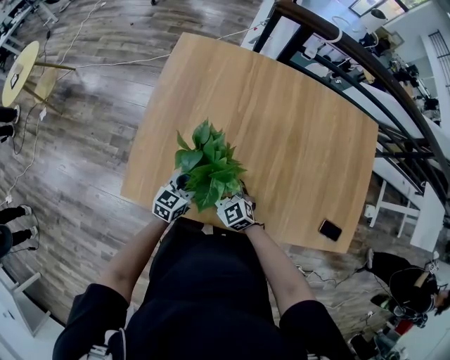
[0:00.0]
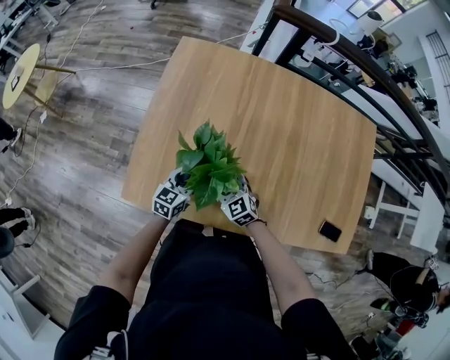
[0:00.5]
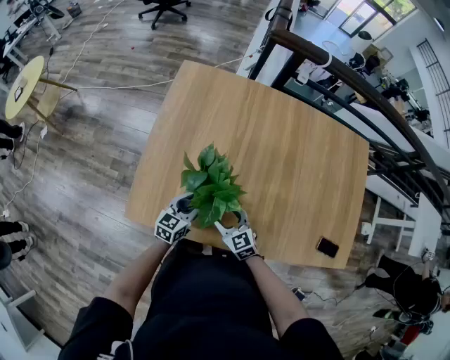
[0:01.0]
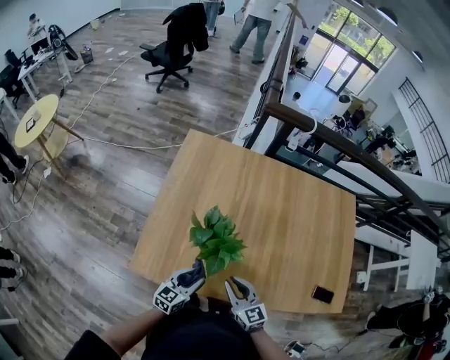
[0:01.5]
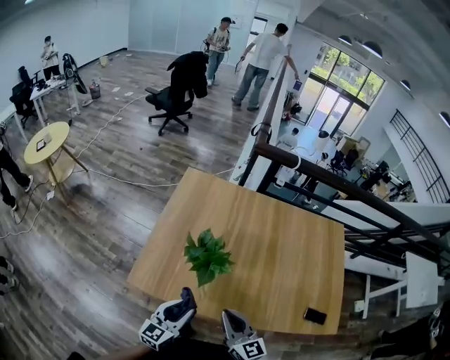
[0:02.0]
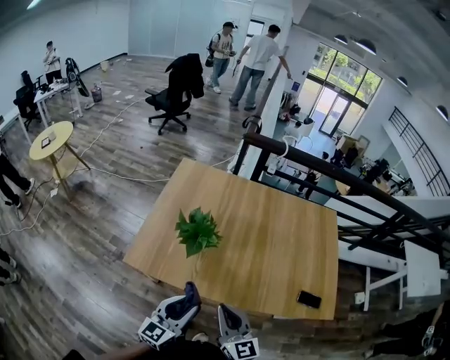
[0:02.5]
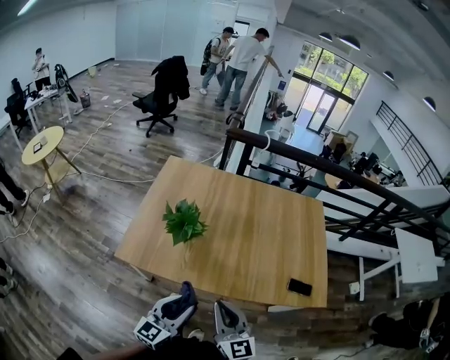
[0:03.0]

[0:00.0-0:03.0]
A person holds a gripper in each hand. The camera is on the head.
0:00.0 to 0:01.5: The right gripper is displaced upward and backward by some 10 cm, changes its angle by roughly 30 degrees, and closes up. Meanwhile the left gripper is displaced backward by about 10 cm.
0:01.5 to 0:03.0: The two grippers go about 25 cm backward, upward and to the right. The right gripper swivels about 20 degrees, and closes.

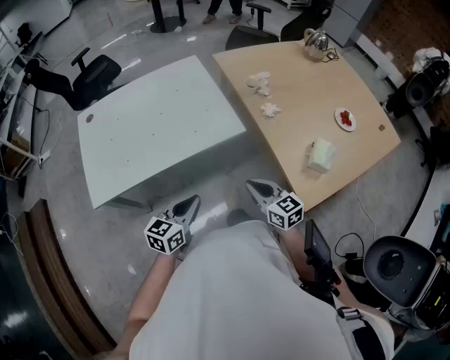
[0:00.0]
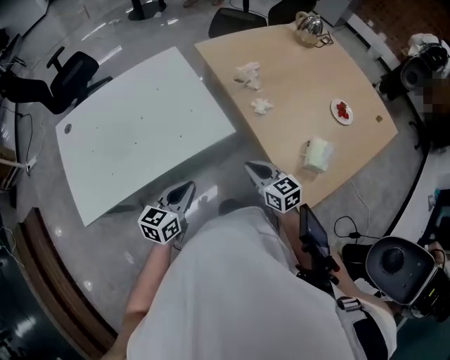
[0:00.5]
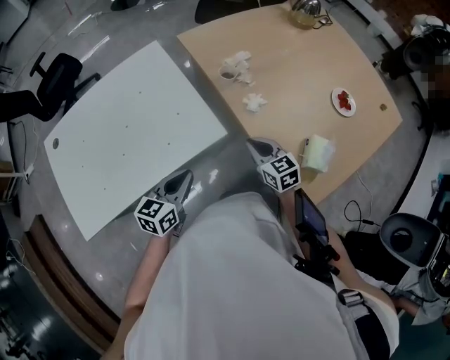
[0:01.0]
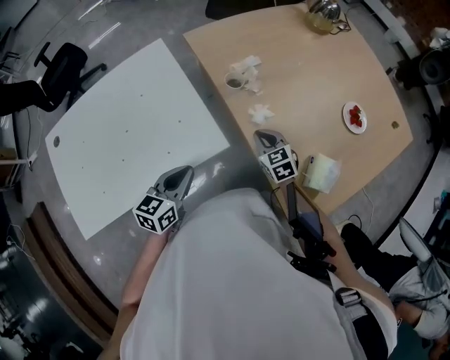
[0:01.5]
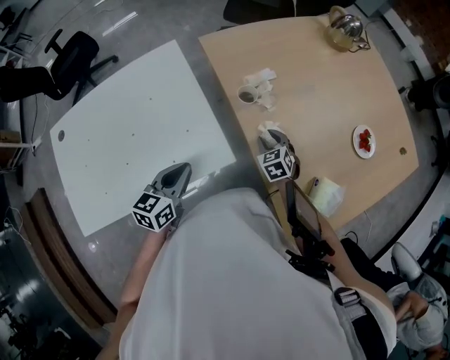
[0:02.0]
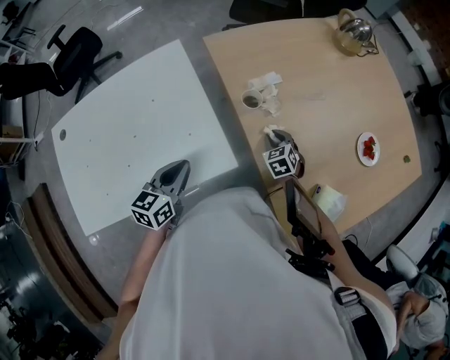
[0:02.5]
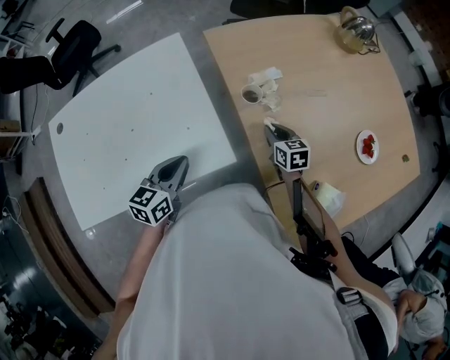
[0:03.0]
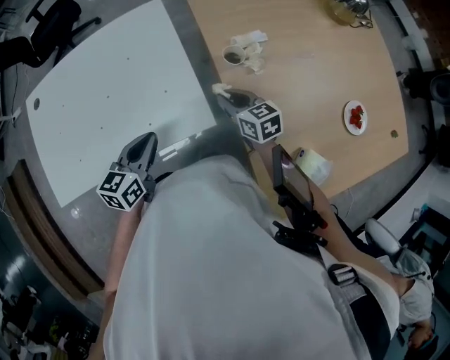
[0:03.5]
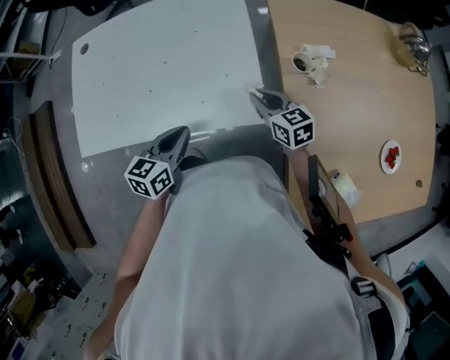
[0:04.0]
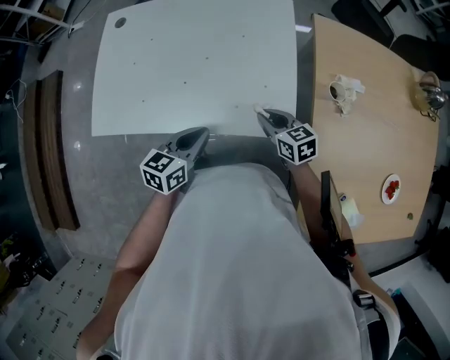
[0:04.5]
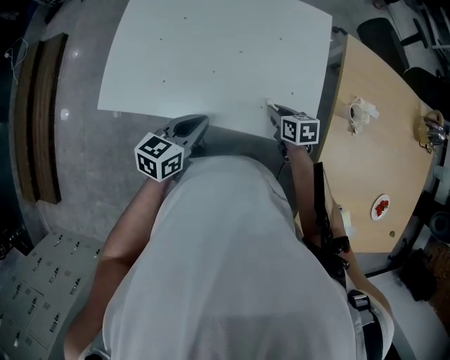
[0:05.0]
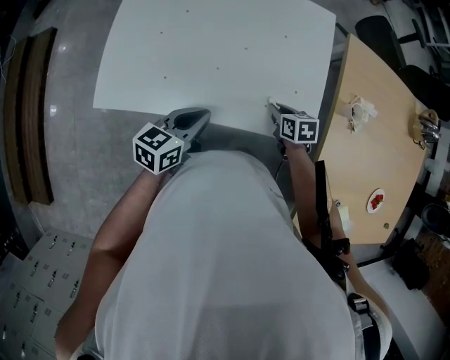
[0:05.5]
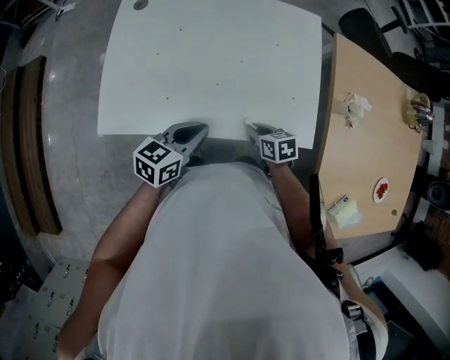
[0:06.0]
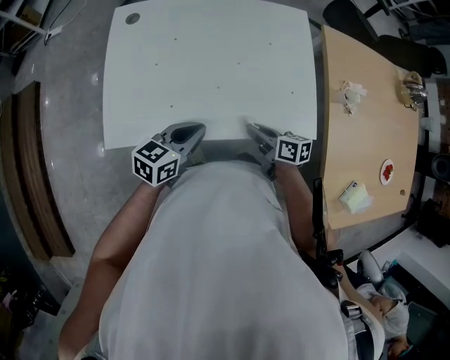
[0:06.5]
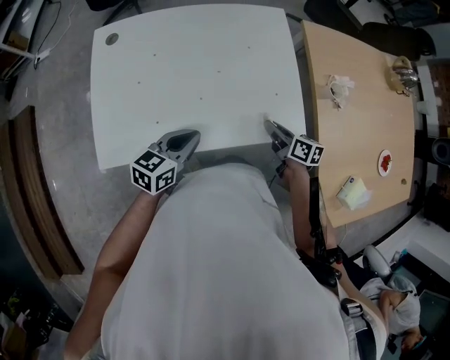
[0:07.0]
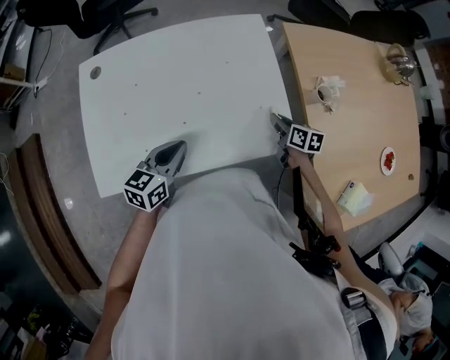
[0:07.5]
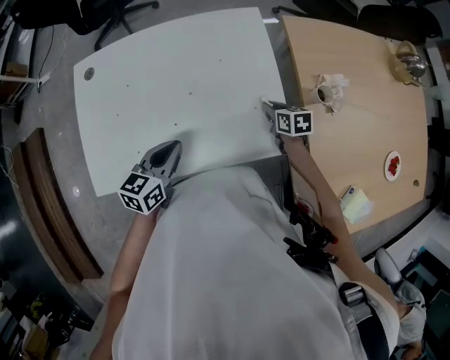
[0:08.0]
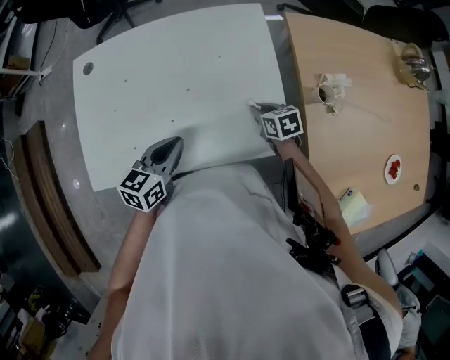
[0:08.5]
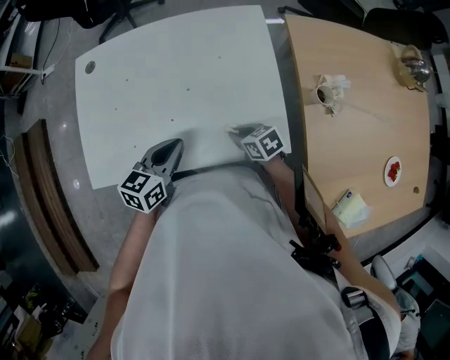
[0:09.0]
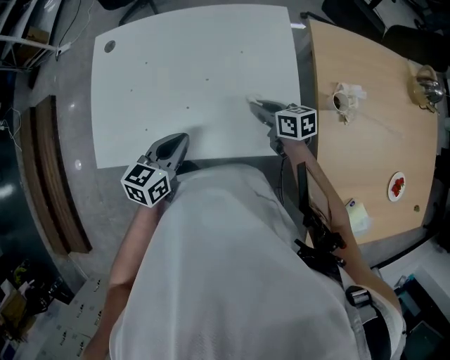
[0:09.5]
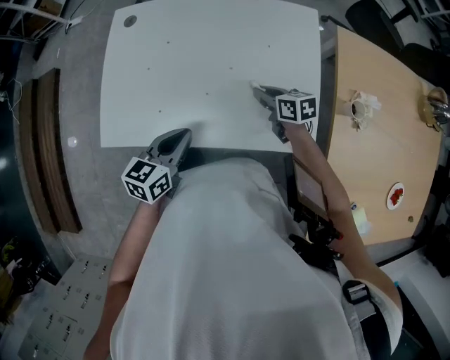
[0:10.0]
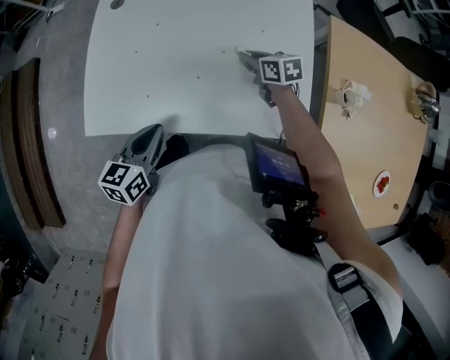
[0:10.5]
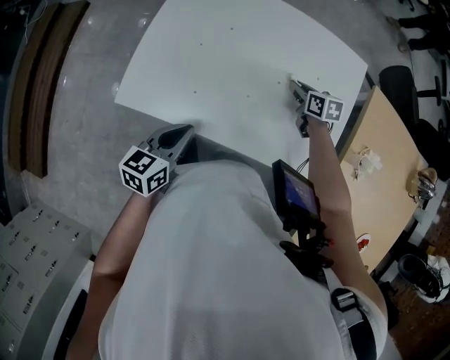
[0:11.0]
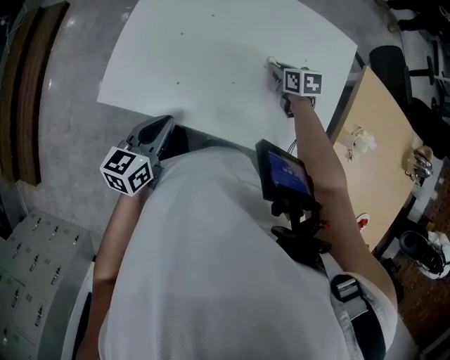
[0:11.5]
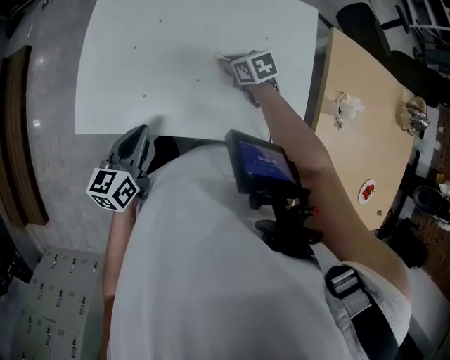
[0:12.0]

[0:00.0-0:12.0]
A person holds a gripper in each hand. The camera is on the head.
0:00.0 to 0:02.0: The grippers both shift forward by approximately 30 cm. The right gripper rotates roughly 40 degrees, and opens up.
0:02.0 to 0:04.0: The right gripper ends up roughly 20 cm from where it was, and changes its angle by approximately 40 degrees. The left gripper changes place by about 10 cm.
0:04.0 to 0:06.0: The right gripper heads to the left and downward, covering roughly 25 cm, and swivels some 30 degrees. Meanwhile the left gripper shifts about 15 cm to the left.
0:06.0 to 0:08.0: The right gripper heads to the right and forward, covering roughly 25 cm. The left gripper goes some 10 cm forward.
0:08.0 to 0:10.0: The left gripper goes about 5 cm to the left. The right gripper moves to the left, about 15 cm, and rotates some 20 degrees.
0:10.0 to 0:12.0: The left gripper heads to the left, covering approximately 10 cm, while the right gripper heads to the left and forward, covering about 10 cm, and swivels about 20 degrees.

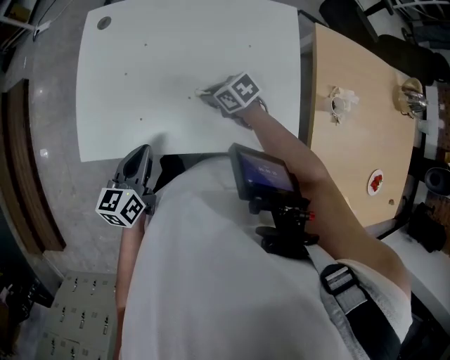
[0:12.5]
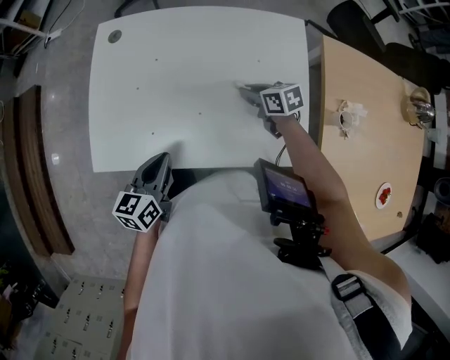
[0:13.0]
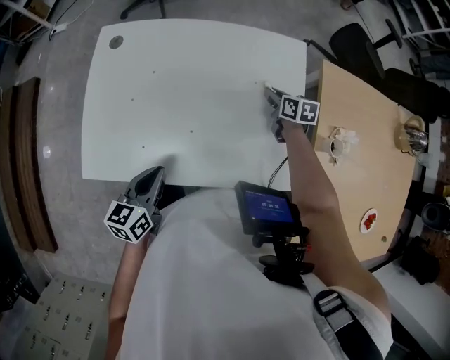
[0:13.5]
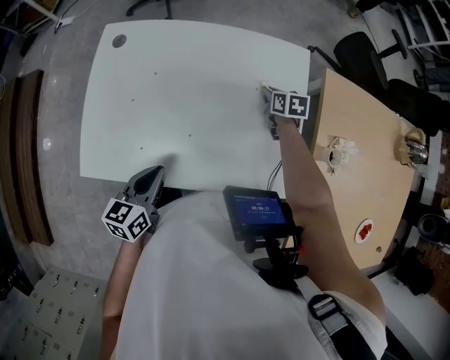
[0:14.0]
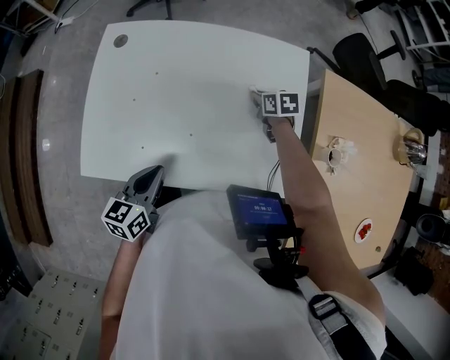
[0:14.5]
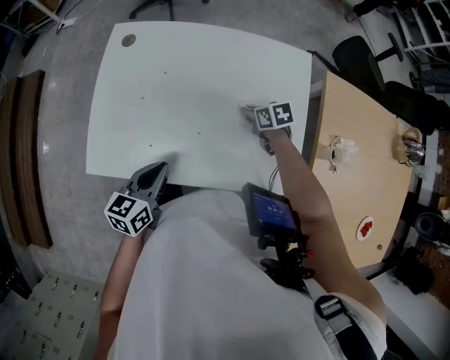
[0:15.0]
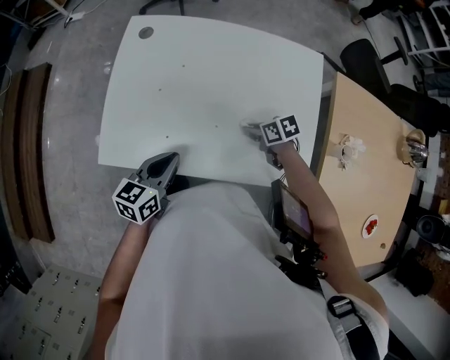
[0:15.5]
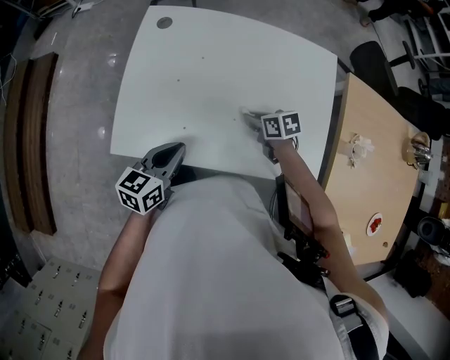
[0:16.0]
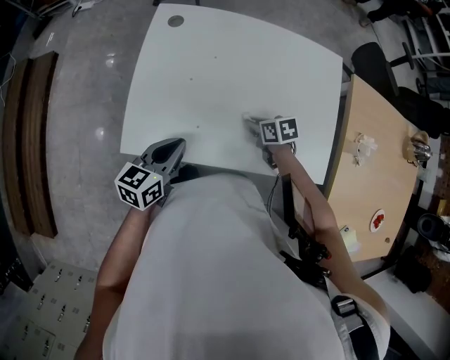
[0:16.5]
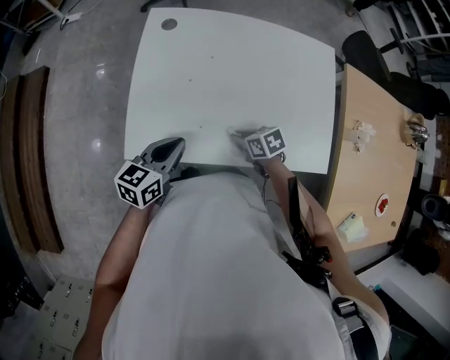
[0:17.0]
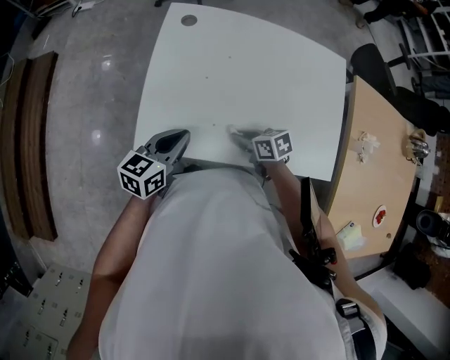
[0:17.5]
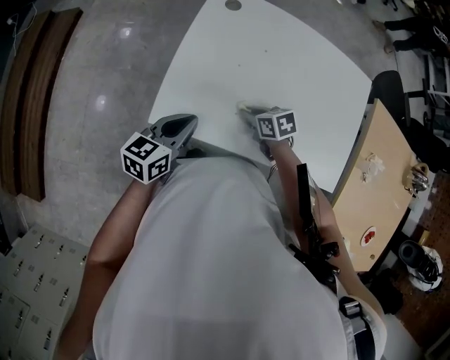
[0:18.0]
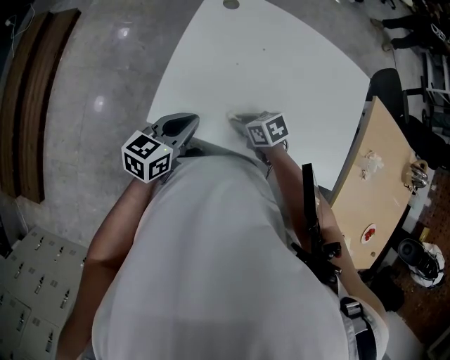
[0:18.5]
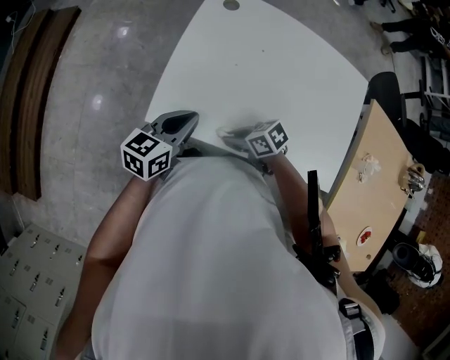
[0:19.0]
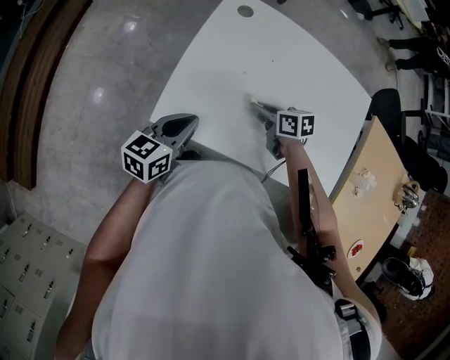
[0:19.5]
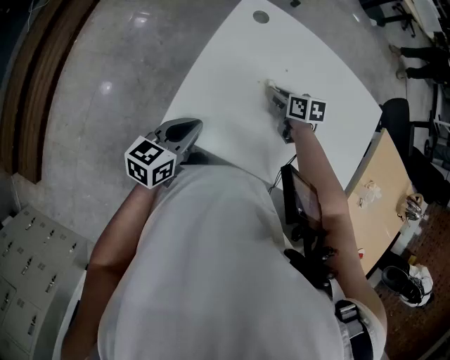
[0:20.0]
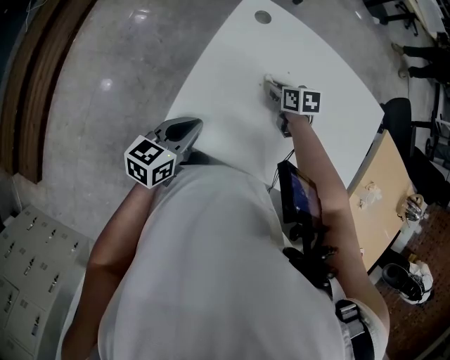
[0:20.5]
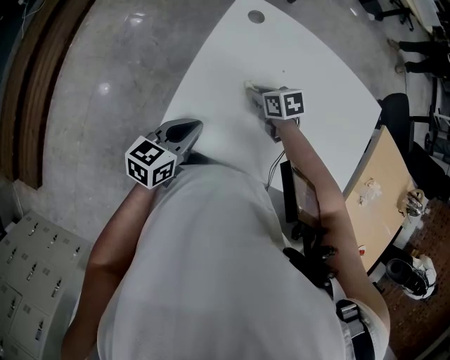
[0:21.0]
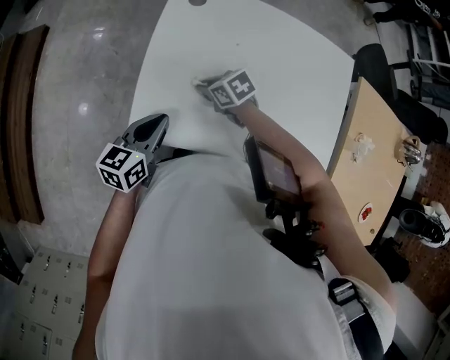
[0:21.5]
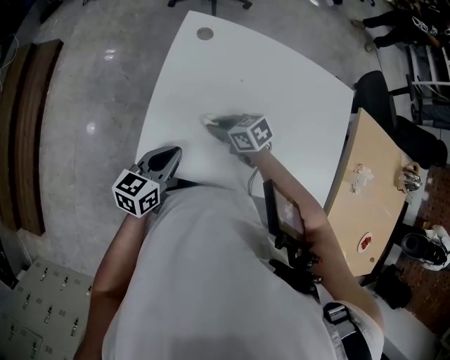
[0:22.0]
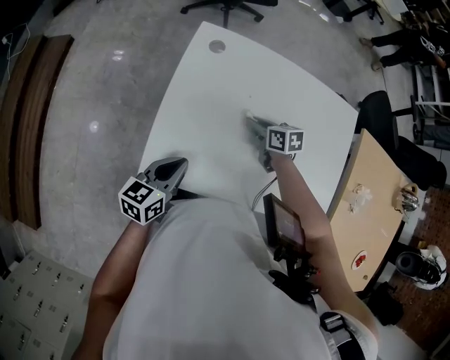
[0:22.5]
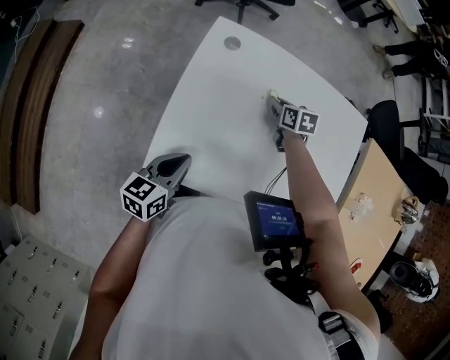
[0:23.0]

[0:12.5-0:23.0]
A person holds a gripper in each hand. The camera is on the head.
0:12.5 to 0:14.5: The right gripper ends up approximately 20 cm from where it was, and swivels some 30 degrees; the left gripper shifts by approximately 5 cm.
0:14.5 to 0:16.5: The left gripper heads to the left, covering some 10 cm, while the right gripper travels to the left and backward by approximately 25 cm.
0:16.5 to 0:19.0: The right gripper ends up about 20 cm from where it was, and changes its angle by some 30 degrees; the left gripper ends up approximately 5 cm from where it was.
0:19.0 to 0:21.0: The right gripper shifts by approximately 20 cm, and turns by approximately 20 degrees.
0:21.0 to 0:23.0: The right gripper moves to the right and forward, some 15 cm, and turns by about 20 degrees.

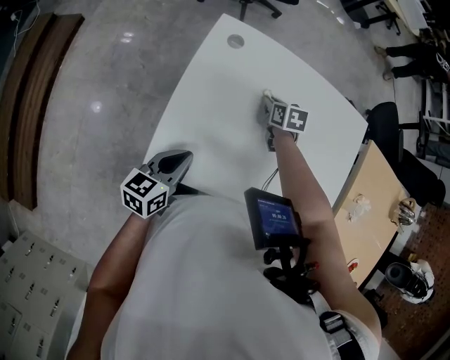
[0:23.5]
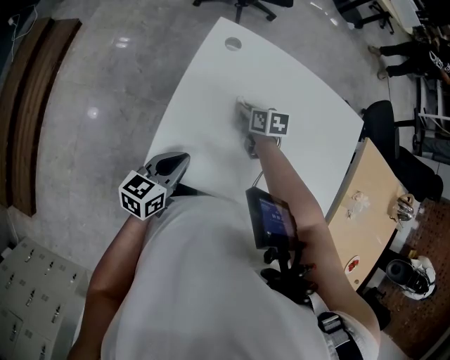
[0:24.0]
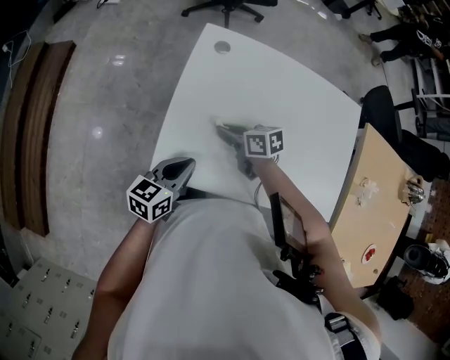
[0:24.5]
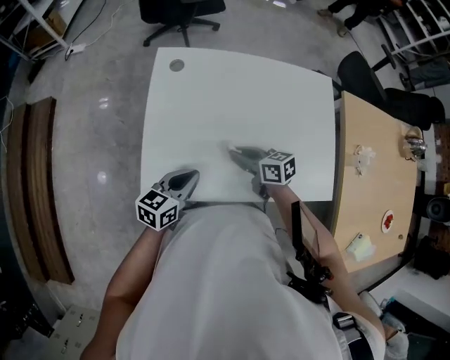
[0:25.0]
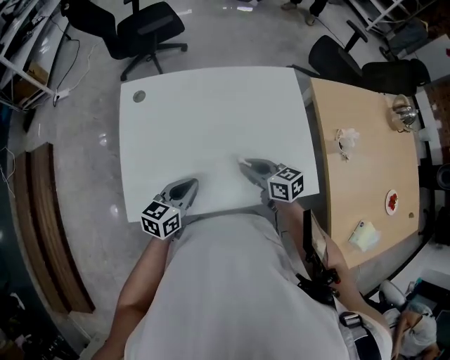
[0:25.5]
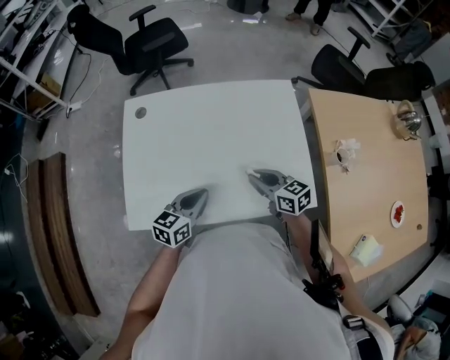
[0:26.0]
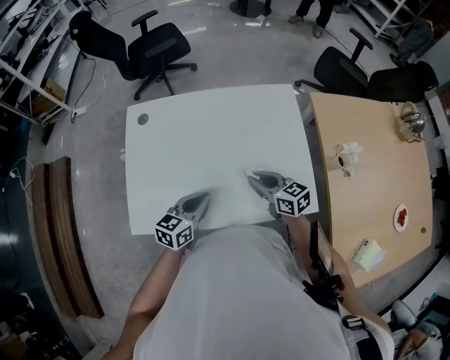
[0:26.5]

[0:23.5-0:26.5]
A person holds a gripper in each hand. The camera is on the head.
0:23.5 to 0:25.0: The right gripper moves backward, about 20 cm, and changes its angle by some 30 degrees. Meanwhile the left gripper travels to the right by about 5 cm.
0:25.0 to 0:26.5: The two grippers go approximately 15 cm to the right.
